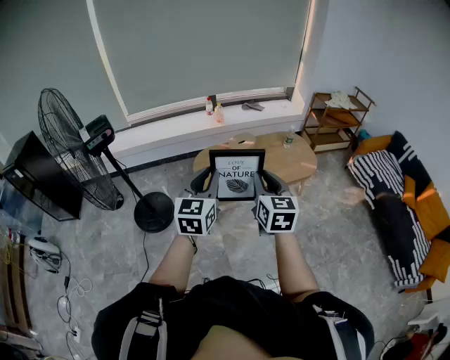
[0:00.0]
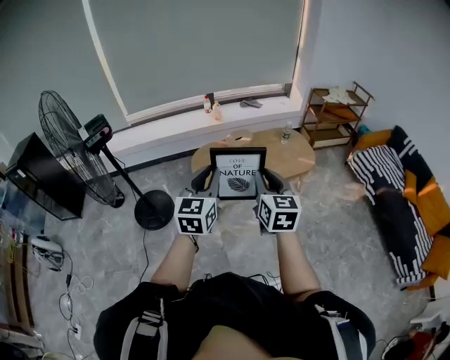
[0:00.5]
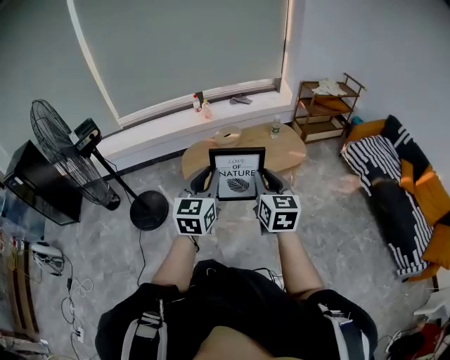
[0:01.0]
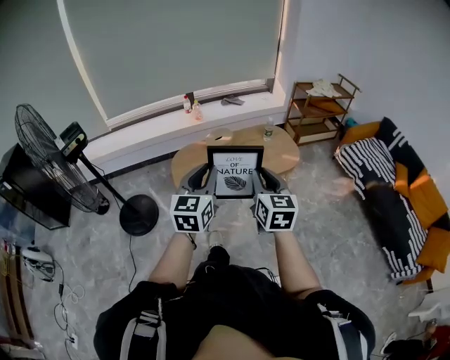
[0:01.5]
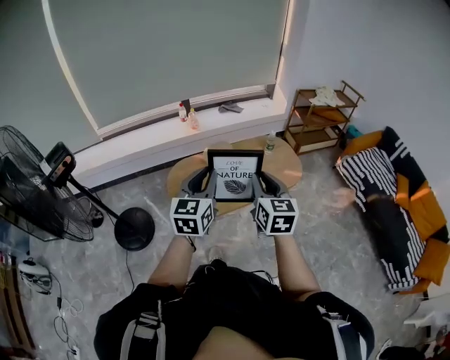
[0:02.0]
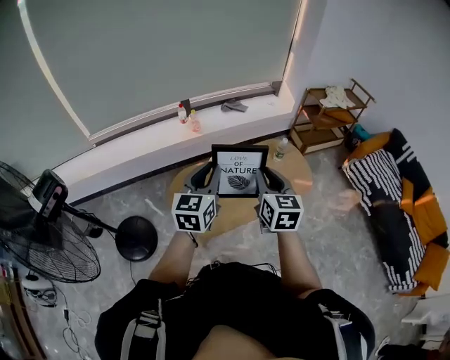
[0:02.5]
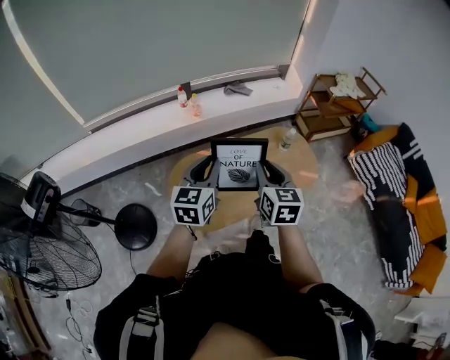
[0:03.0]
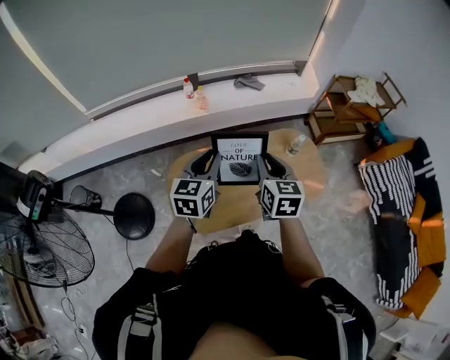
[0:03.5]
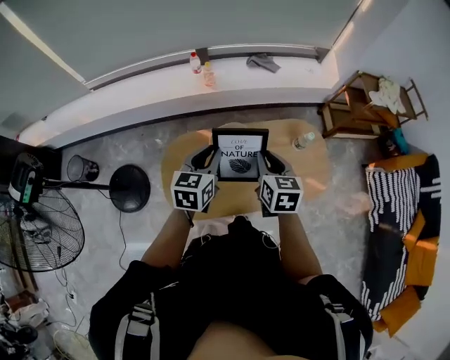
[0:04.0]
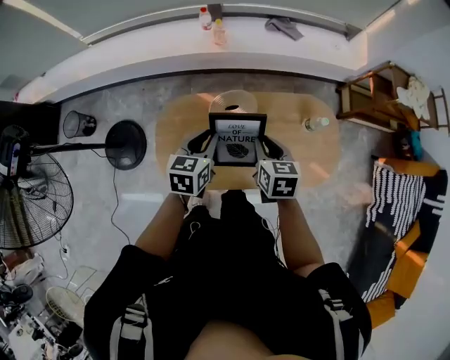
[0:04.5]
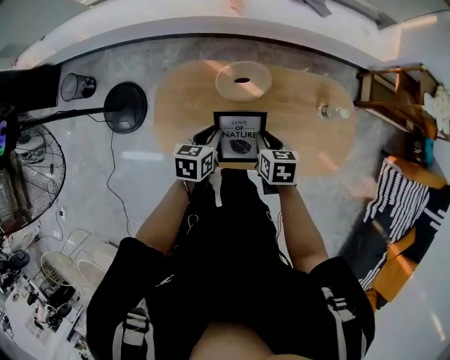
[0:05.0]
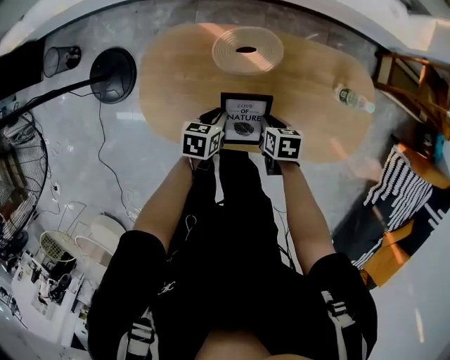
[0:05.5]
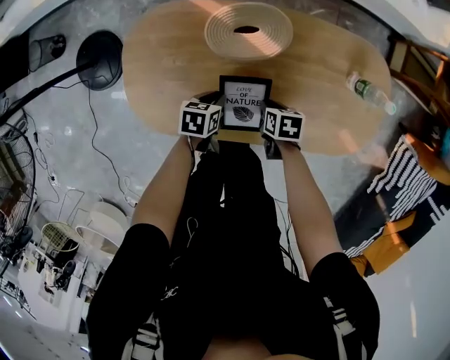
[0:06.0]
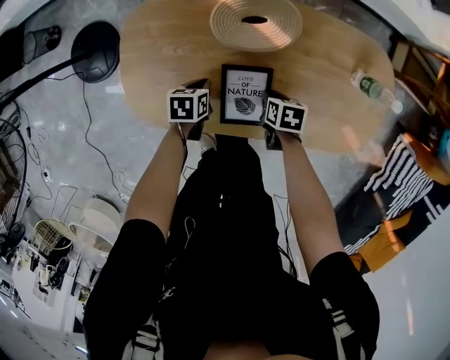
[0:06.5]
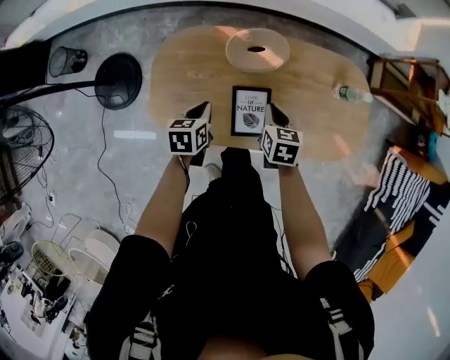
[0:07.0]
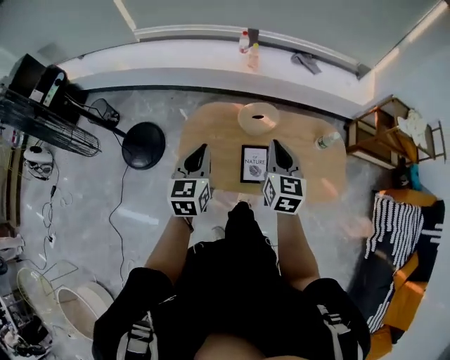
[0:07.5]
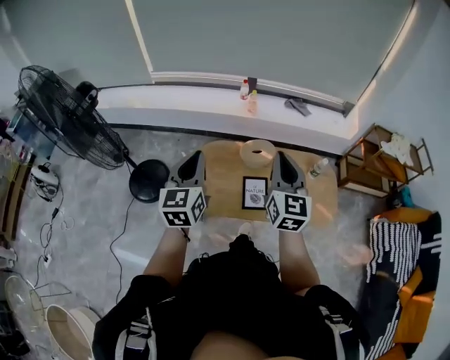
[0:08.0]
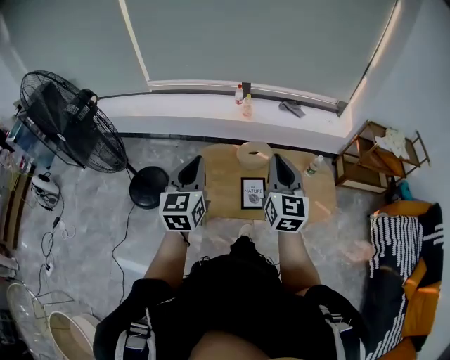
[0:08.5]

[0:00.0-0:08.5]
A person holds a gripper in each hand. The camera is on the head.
0:00.0 to 0:02.0: Both grippers travel together forward and to the right, about 25 cm.
0:02.0 to 0:04.0: Both grippers are carried forward, approximately 50 cm. The left gripper turns by approximately 20 degrees. Meanwhile the right gripper changes its angle by approximately 20 degrees.
0:04.0 to 0:06.5: Both grippers move downward, some 60 cm. The left gripper angles its fingers downward, by approximately 40 degrees; the right gripper points its fingers approximately 40 degrees further downward.
0:06.5 to 0:08.5: The grippers both shift upward by roughly 70 cm. The right gripper points its fingers approximately 70 degrees further upward, and closes. The left gripper tilts its fingers approximately 60 degrees upward.

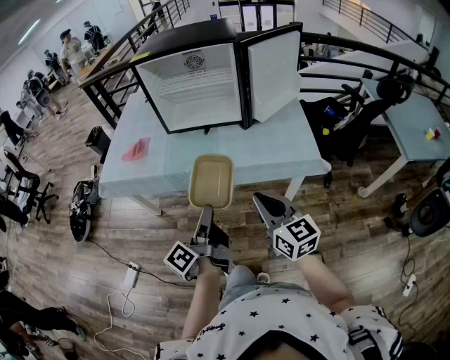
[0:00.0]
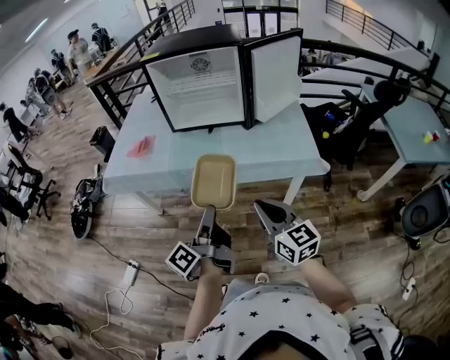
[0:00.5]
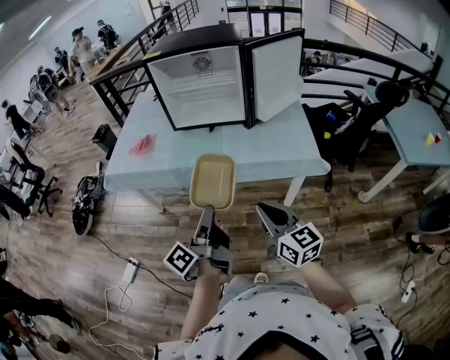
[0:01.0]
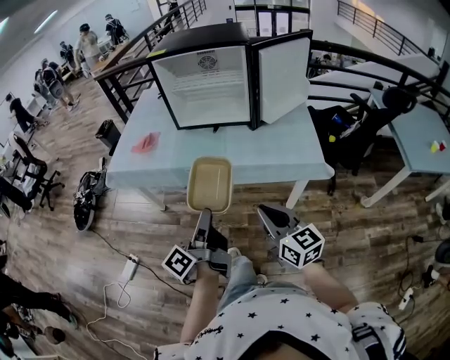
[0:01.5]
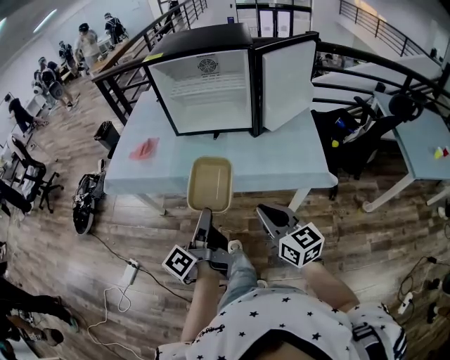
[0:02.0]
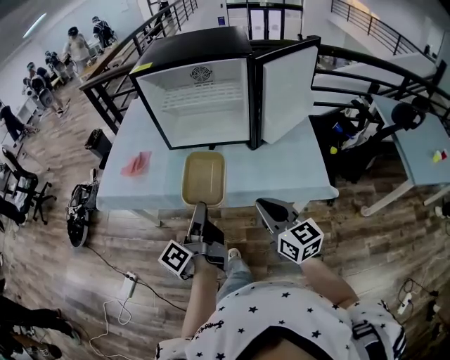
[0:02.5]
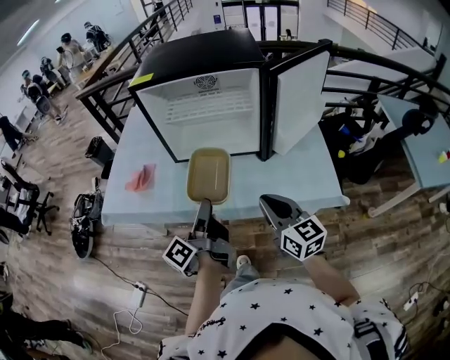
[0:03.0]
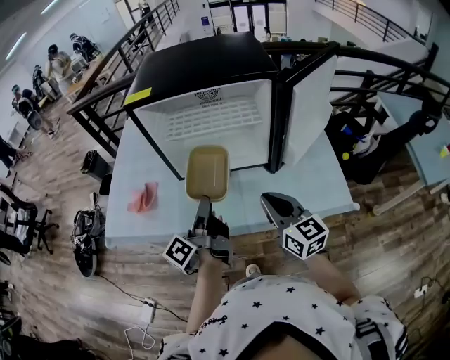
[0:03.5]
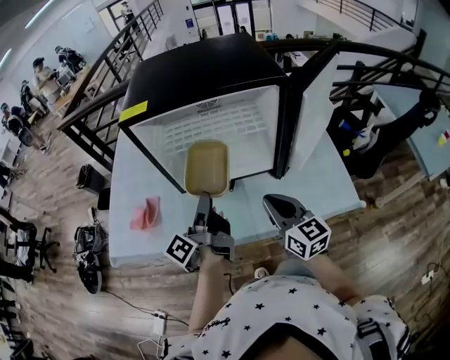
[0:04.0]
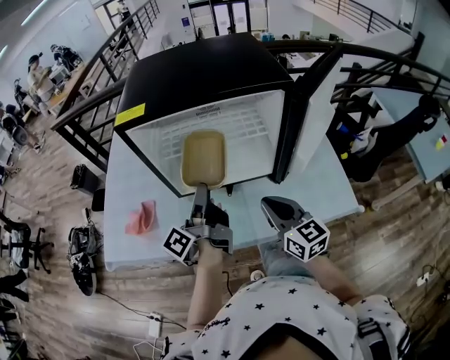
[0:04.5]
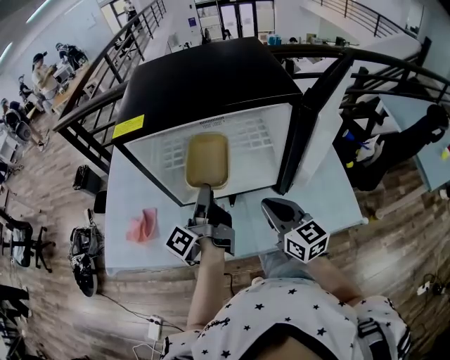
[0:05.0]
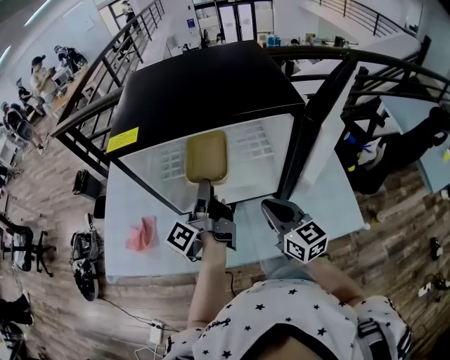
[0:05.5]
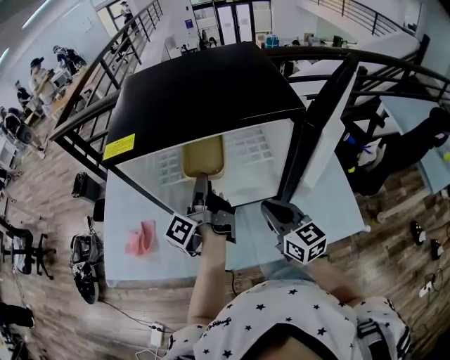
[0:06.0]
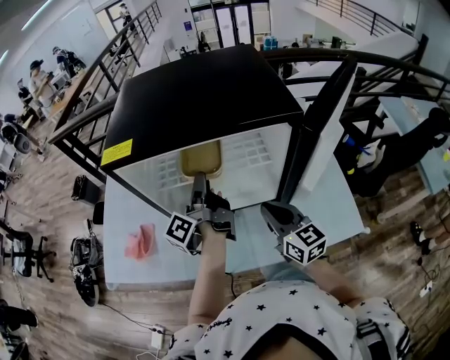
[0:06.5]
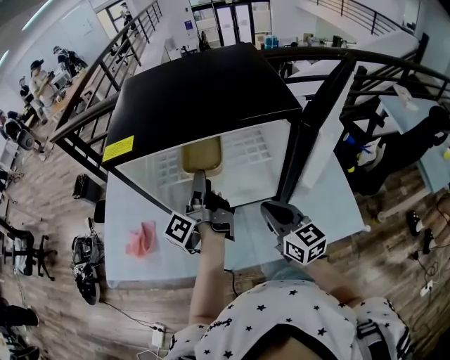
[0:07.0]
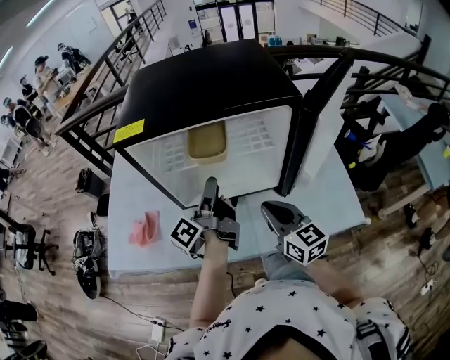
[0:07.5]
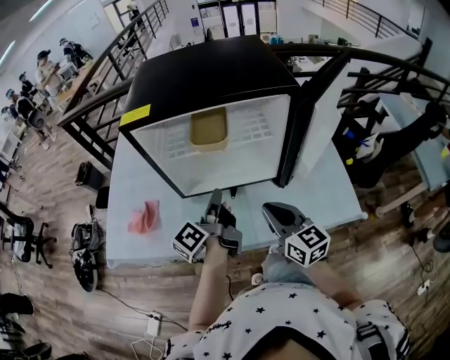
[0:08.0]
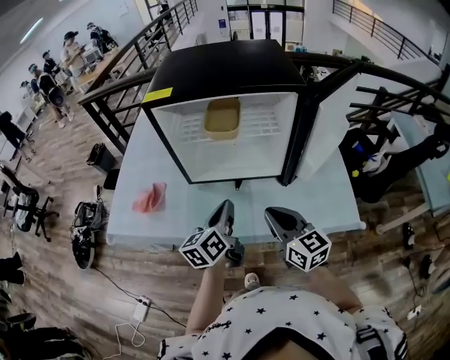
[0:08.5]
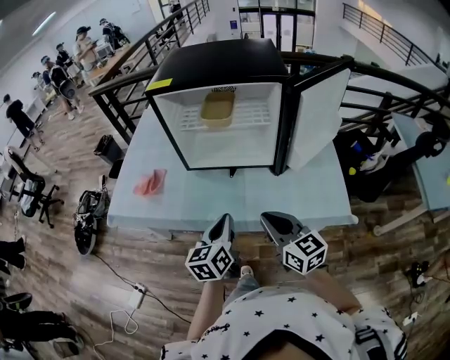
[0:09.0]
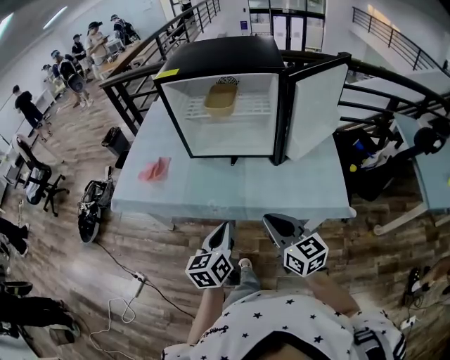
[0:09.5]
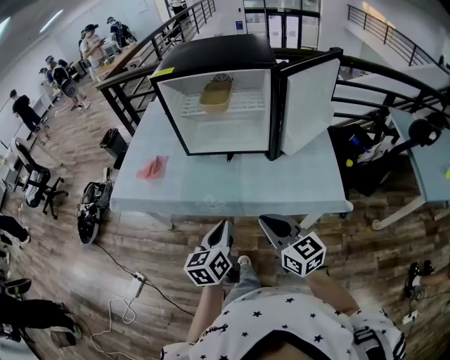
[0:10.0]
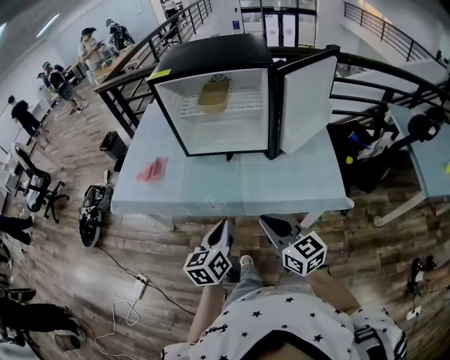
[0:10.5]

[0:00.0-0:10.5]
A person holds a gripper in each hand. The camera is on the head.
0:02.0 to 0:04.0: The right gripper moves roughly 30 cm.
0:04.0 to 0:06.5: The right gripper changes place by about 10 cm.
0:06.5 to 0:08.5: The right gripper changes place by roughly 15 cm.
0:08.5 to 0:10.5: The right gripper changes place by some 15 cm.

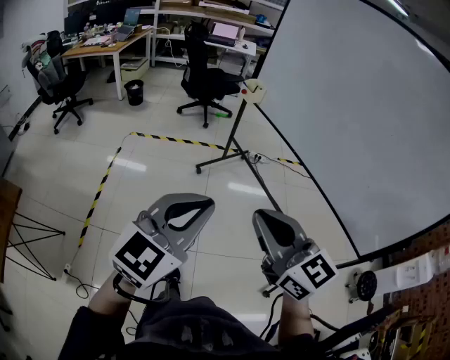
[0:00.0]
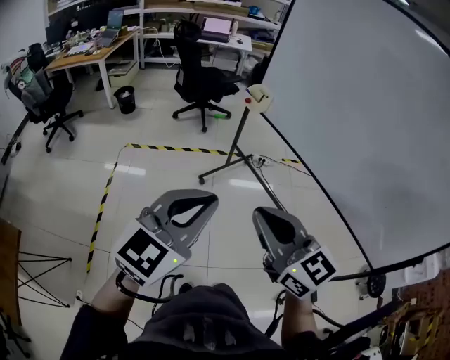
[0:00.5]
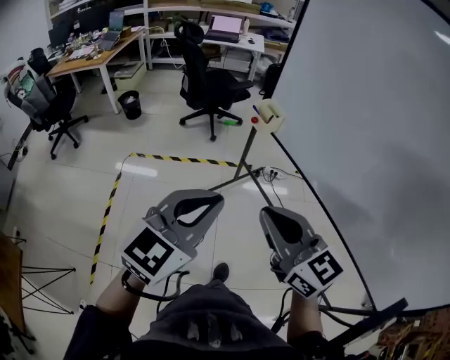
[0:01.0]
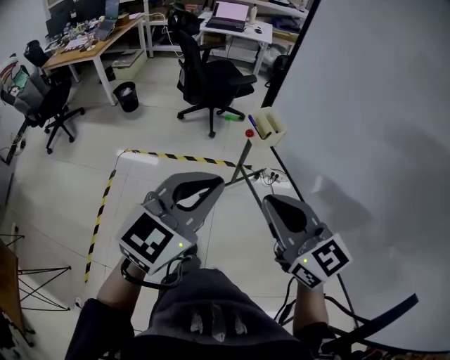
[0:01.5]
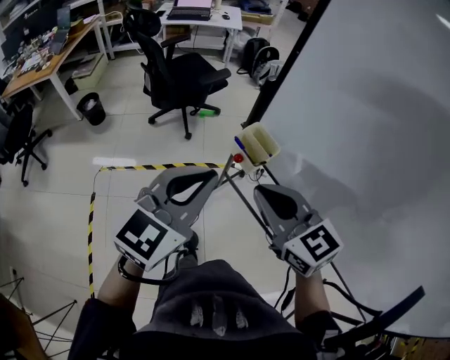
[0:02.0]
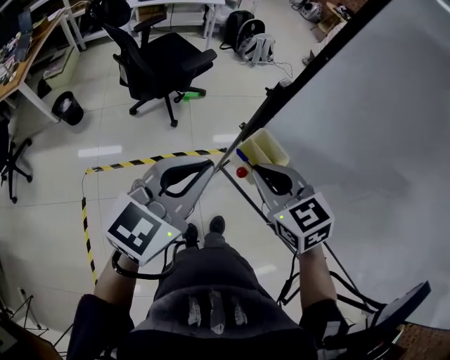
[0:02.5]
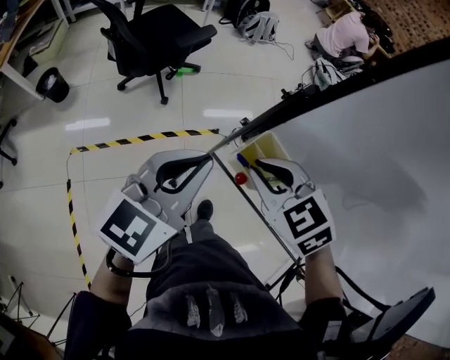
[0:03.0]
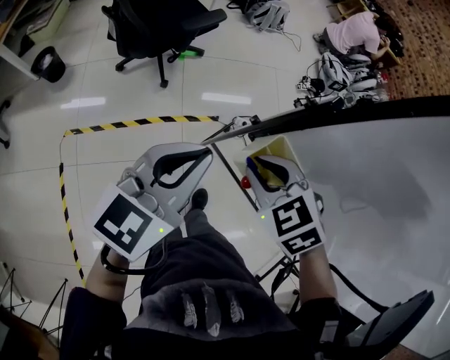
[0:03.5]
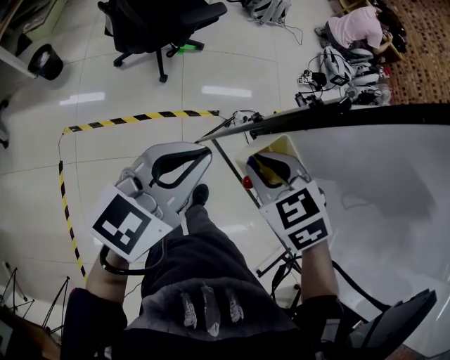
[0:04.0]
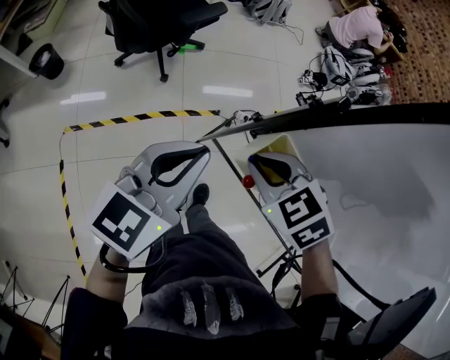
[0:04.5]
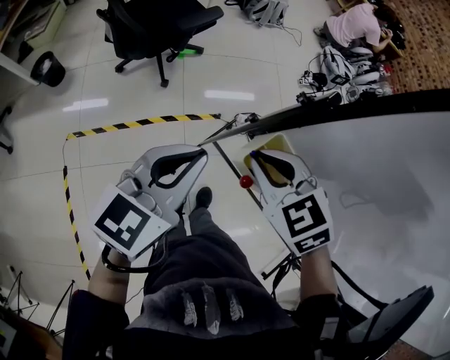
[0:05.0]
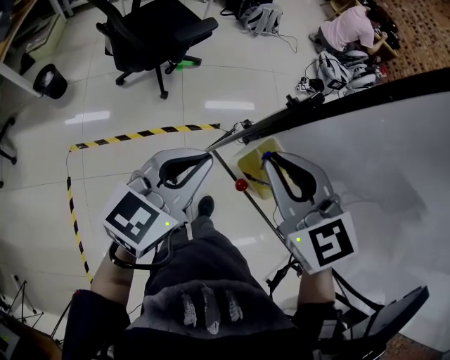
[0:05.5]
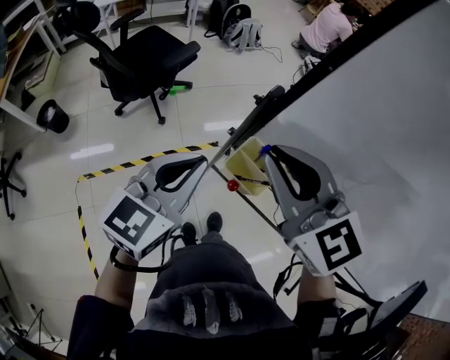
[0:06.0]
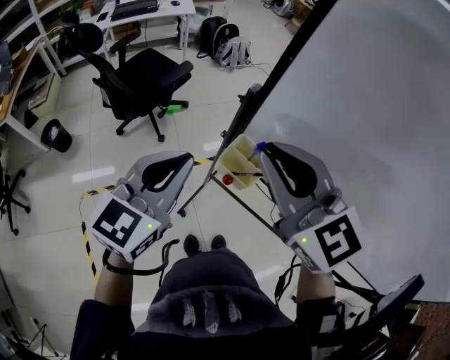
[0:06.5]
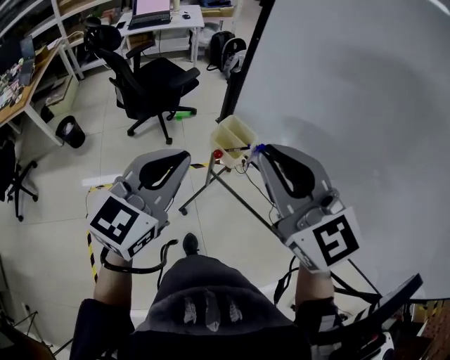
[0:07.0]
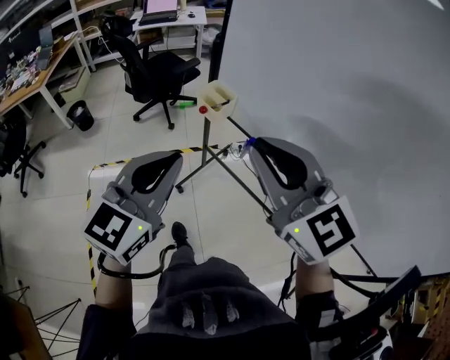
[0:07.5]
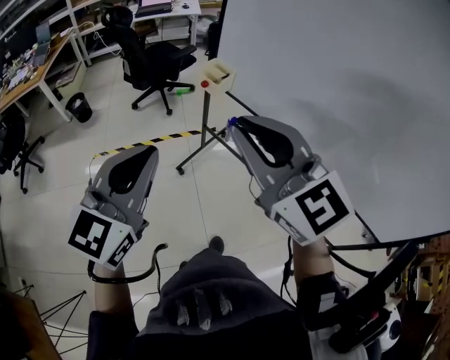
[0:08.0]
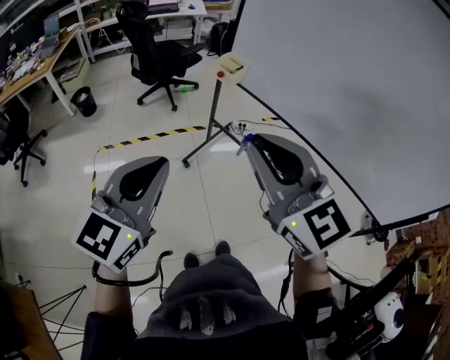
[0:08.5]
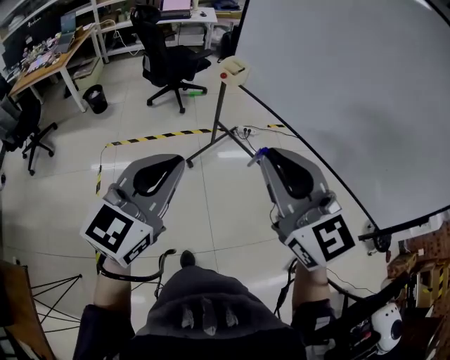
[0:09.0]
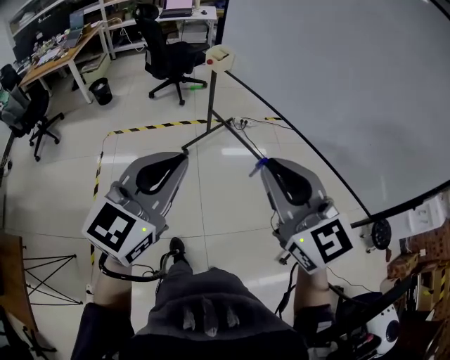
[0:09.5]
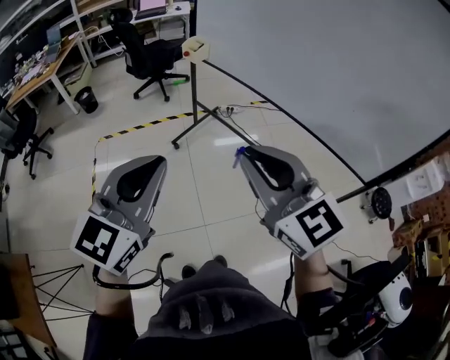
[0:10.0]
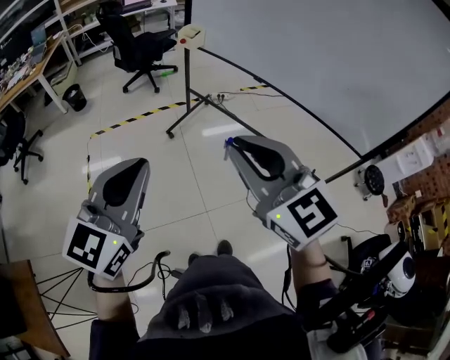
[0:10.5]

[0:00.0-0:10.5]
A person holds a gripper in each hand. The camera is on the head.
0:00.0 to 0:02.0: The pair of grippers is taken forward, some 70 cm.
0:02.0 to 0:04.0: Both grippers travel together forward and downward, about 25 cm. The right gripper tilts its fingers some 40 degrees downward.
0:04.0 to 0:06.5: The left gripper moves upward and backward, about 10 cm, while the right gripper goes about 25 cm upward, and points its fingers some 50 degrees further upward.
0:06.5 to 0:08.5: The pair of grippers is taken backward, about 50 cm.
0:08.5 to 0:10.5: Both grippers travel together backward, some 25 cm.
